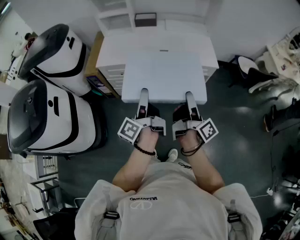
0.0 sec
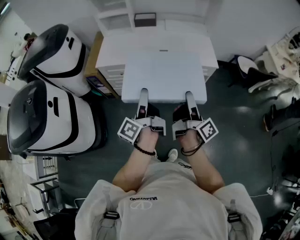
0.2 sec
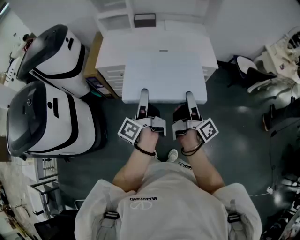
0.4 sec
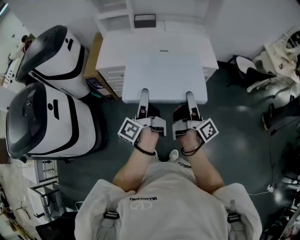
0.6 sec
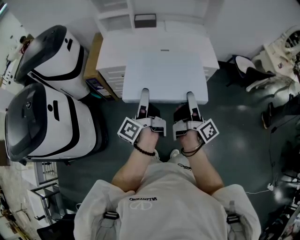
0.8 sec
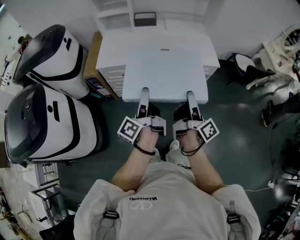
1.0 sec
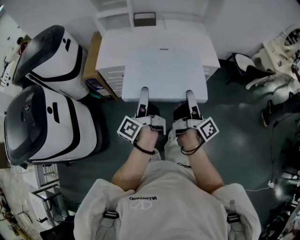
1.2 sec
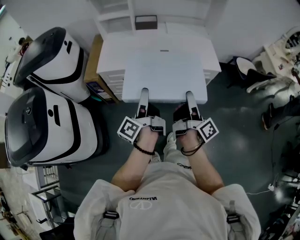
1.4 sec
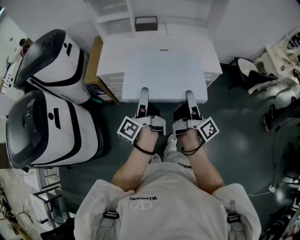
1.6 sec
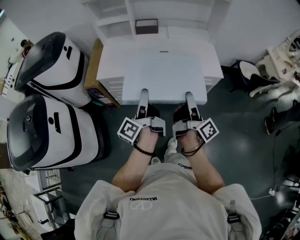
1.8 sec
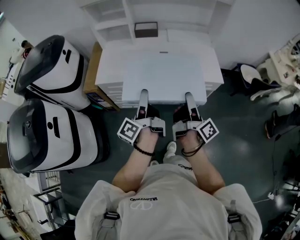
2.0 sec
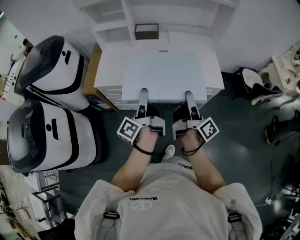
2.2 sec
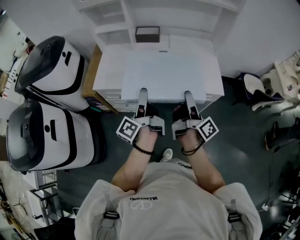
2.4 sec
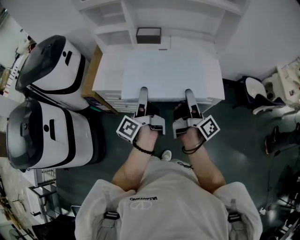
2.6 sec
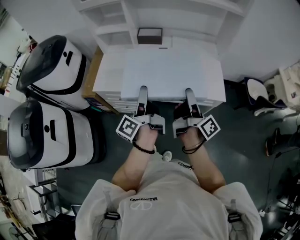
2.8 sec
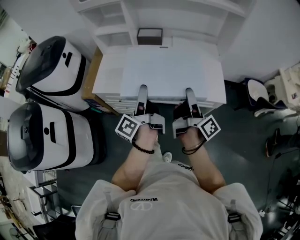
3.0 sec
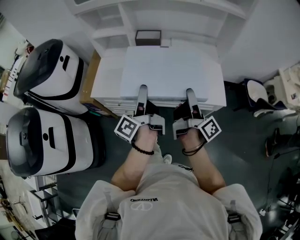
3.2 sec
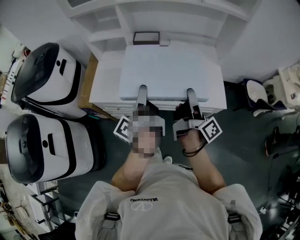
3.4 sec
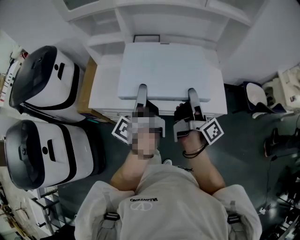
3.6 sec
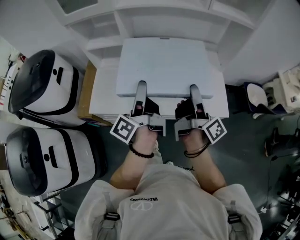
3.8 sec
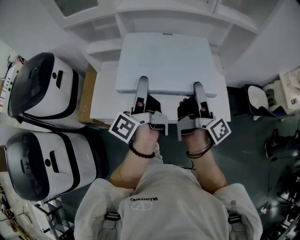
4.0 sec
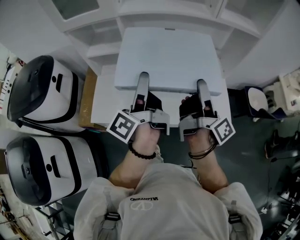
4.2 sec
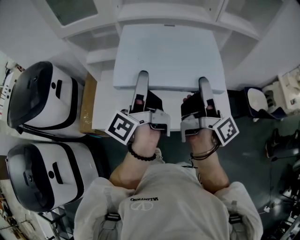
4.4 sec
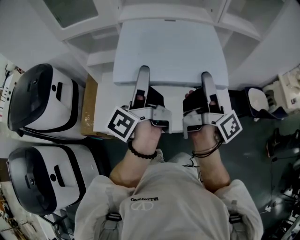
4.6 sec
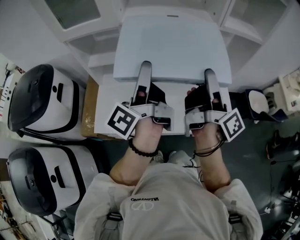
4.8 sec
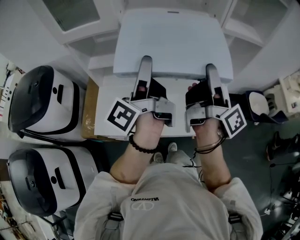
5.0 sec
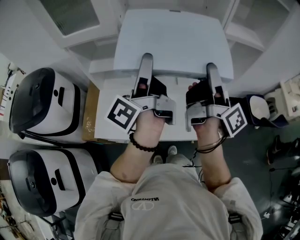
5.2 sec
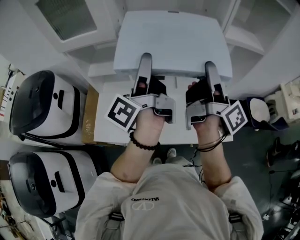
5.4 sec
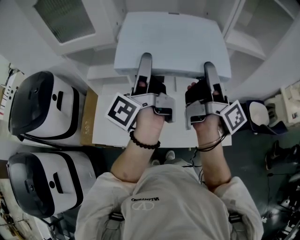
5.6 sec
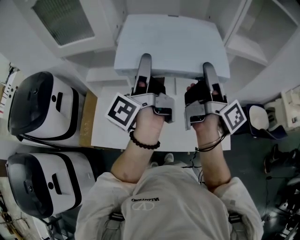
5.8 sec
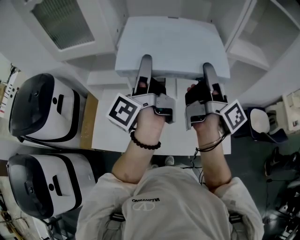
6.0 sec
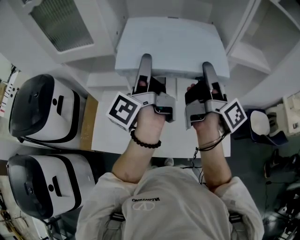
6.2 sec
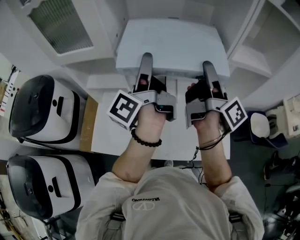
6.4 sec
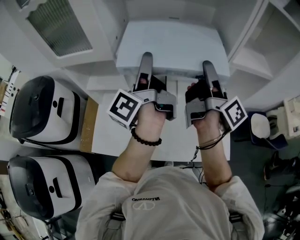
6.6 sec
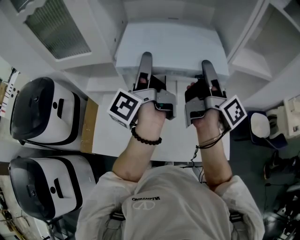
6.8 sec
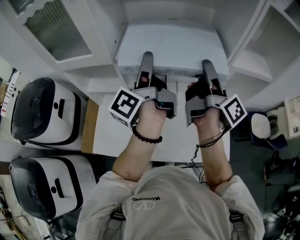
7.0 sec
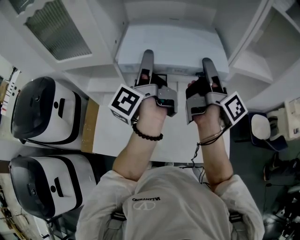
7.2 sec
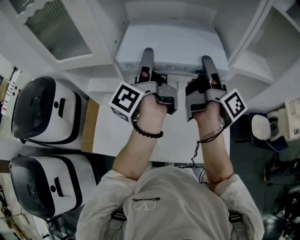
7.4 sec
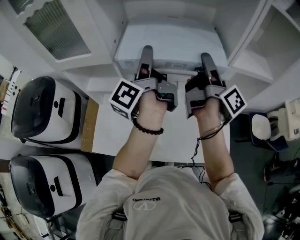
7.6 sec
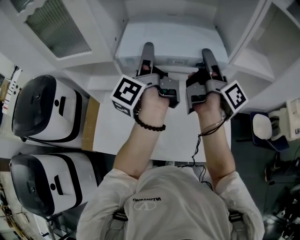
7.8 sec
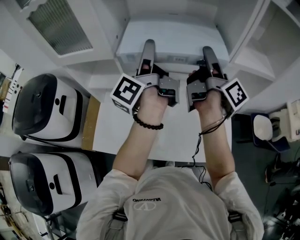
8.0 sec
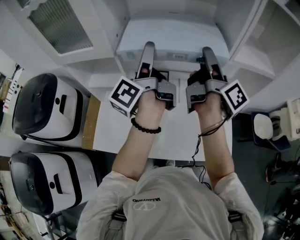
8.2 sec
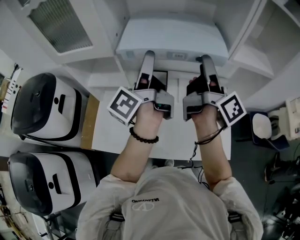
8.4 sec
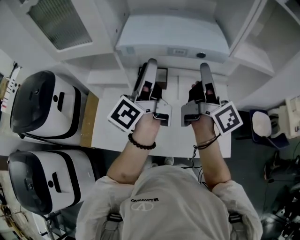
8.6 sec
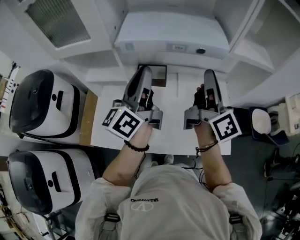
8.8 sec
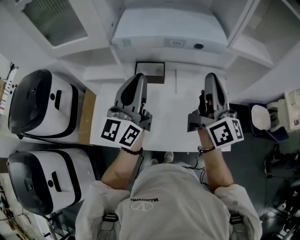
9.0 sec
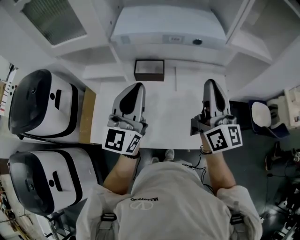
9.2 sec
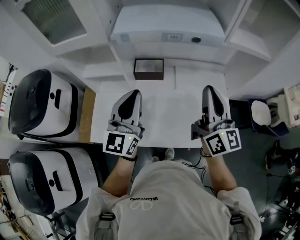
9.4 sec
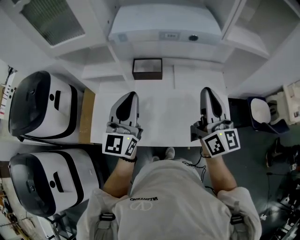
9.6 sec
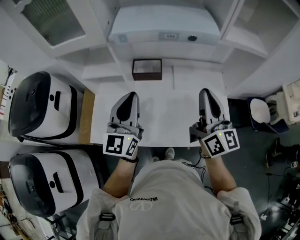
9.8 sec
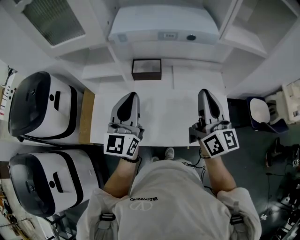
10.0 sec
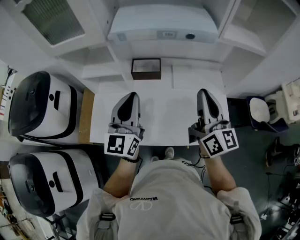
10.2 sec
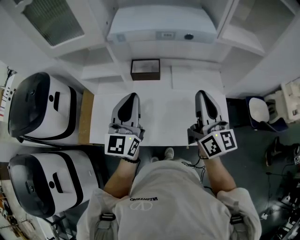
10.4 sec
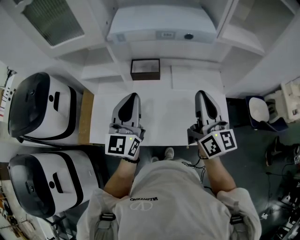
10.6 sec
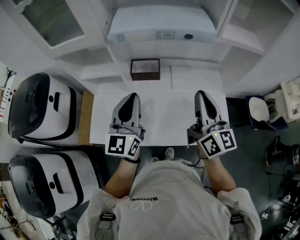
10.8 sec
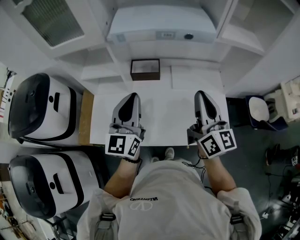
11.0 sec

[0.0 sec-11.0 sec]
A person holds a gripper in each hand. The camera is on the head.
0.0 sec to 1.6 sec: The grippers both shift forward by roughly 5 cm.
1.6 sec to 3.2 sec: Both grippers move forward, approximately 20 cm.
3.2 sec to 4.8 sec: The two grippers go about 25 cm forward and upward.
4.8 sec to 6.2 sec: Both grippers travel together forward, some 15 cm.
6.2 sec to 7.8 sec: Both grippers move forward, roughly 10 cm.
7.8 sec to 9.4 sec: The right gripper moves backward, some 15 cm, rolls counterclockwise, seen from behind, by roughly 60 degrees, and closes; the left gripper moves backward and downward, roughly 20 cm, rolls clockwise, seen from behind, by about 70 degrees, and closes up.
9.4 sec to 11.0 sec: The grippers make only small movements.

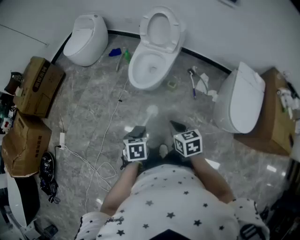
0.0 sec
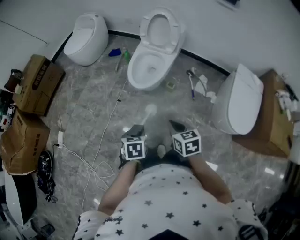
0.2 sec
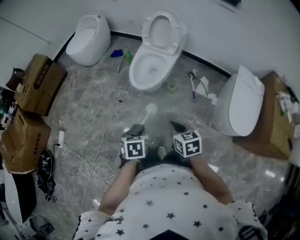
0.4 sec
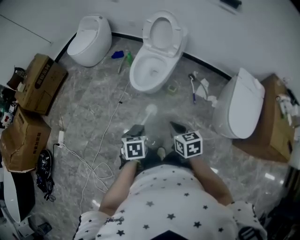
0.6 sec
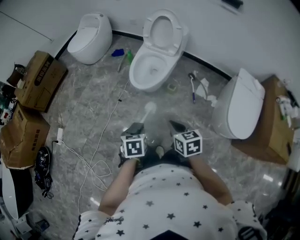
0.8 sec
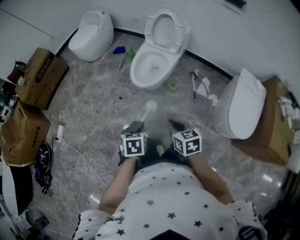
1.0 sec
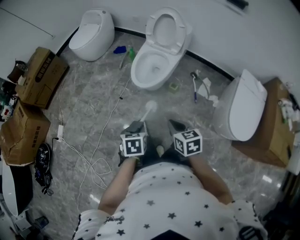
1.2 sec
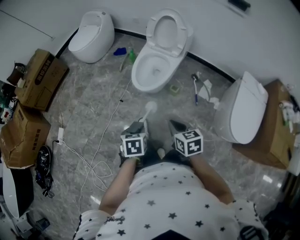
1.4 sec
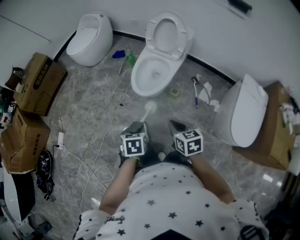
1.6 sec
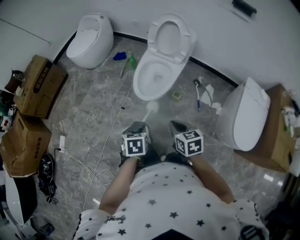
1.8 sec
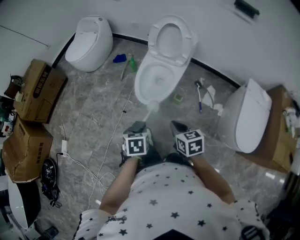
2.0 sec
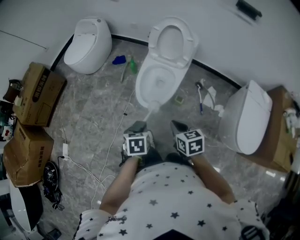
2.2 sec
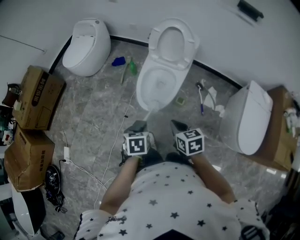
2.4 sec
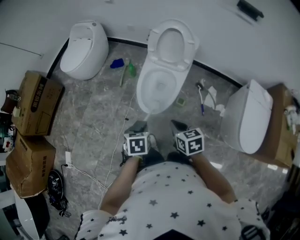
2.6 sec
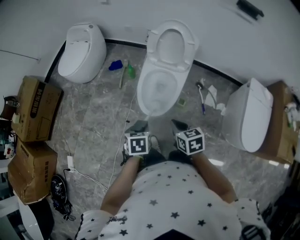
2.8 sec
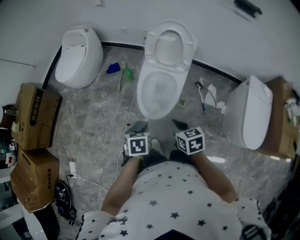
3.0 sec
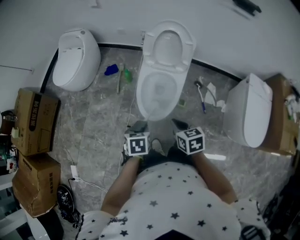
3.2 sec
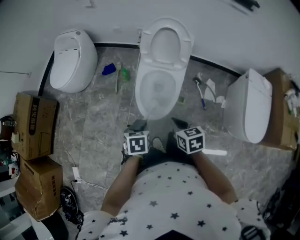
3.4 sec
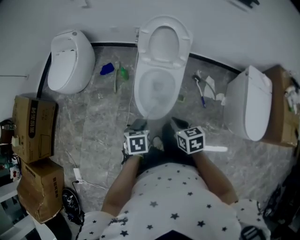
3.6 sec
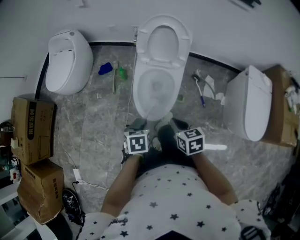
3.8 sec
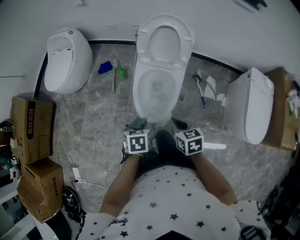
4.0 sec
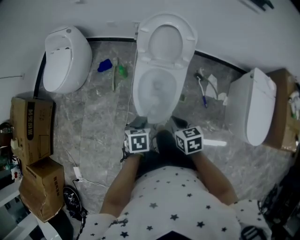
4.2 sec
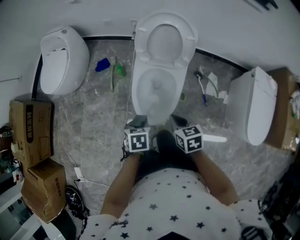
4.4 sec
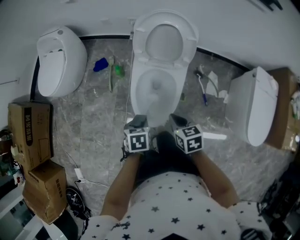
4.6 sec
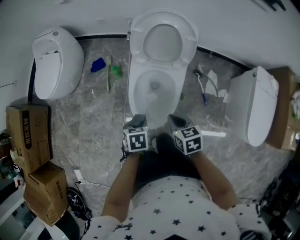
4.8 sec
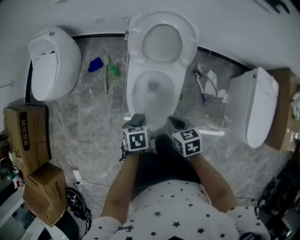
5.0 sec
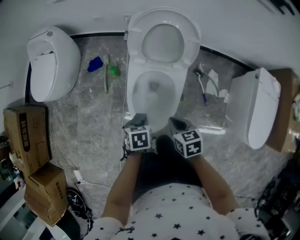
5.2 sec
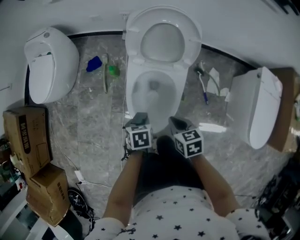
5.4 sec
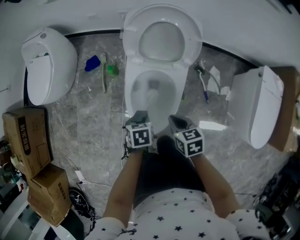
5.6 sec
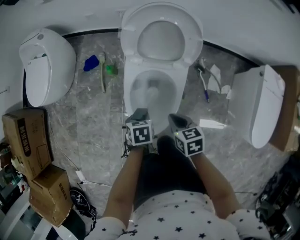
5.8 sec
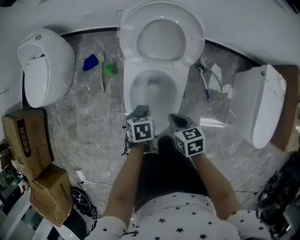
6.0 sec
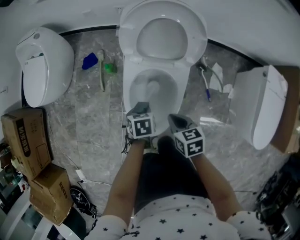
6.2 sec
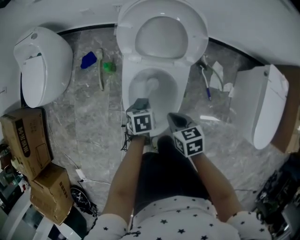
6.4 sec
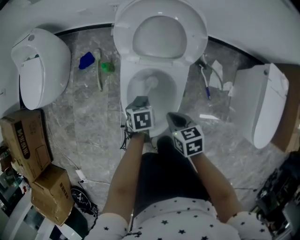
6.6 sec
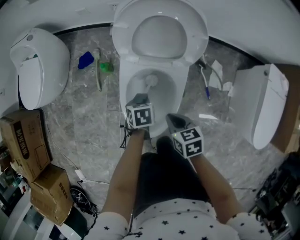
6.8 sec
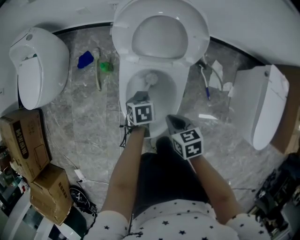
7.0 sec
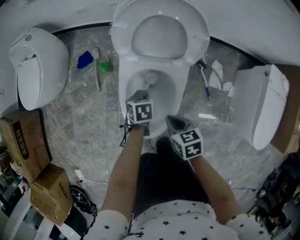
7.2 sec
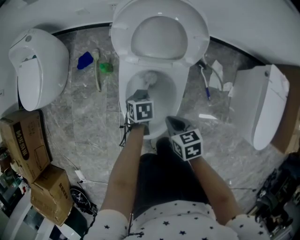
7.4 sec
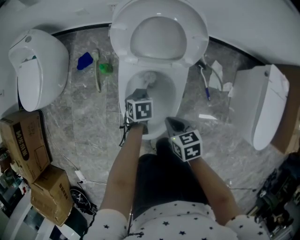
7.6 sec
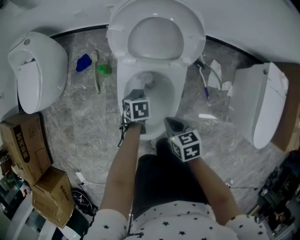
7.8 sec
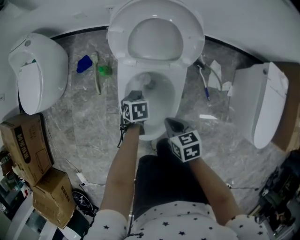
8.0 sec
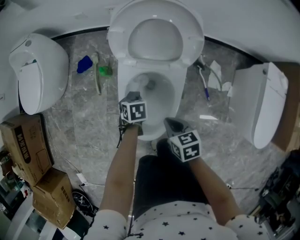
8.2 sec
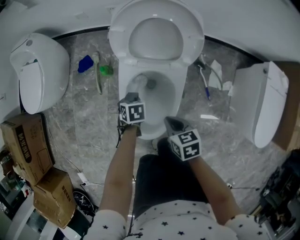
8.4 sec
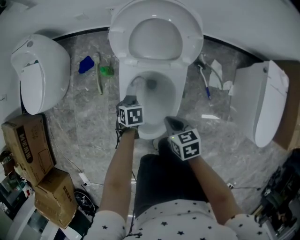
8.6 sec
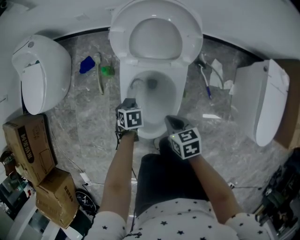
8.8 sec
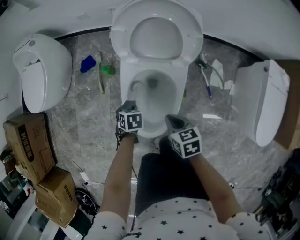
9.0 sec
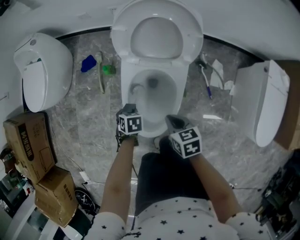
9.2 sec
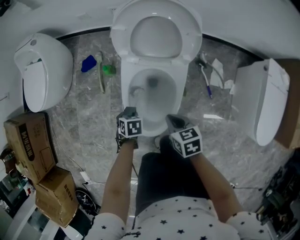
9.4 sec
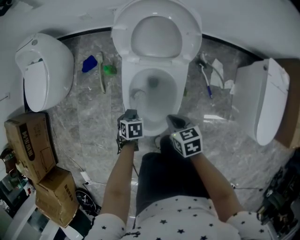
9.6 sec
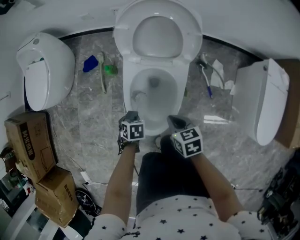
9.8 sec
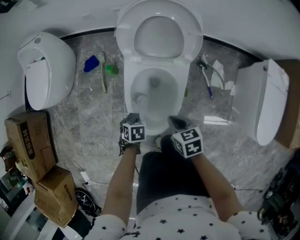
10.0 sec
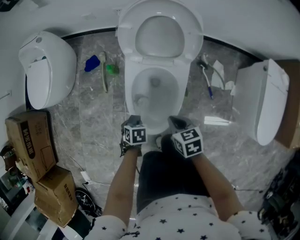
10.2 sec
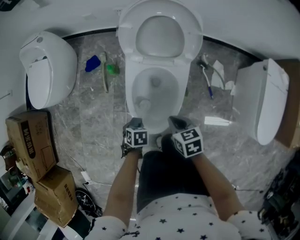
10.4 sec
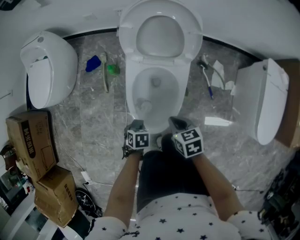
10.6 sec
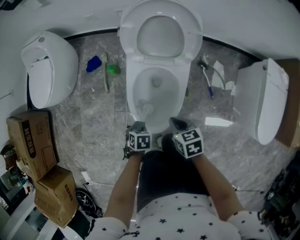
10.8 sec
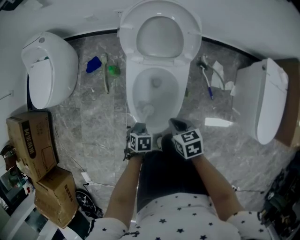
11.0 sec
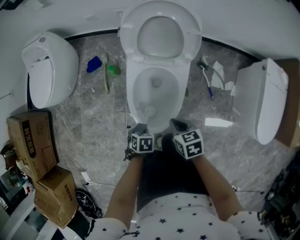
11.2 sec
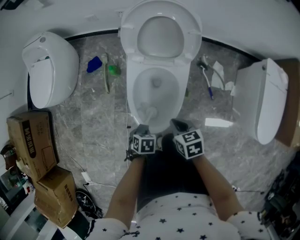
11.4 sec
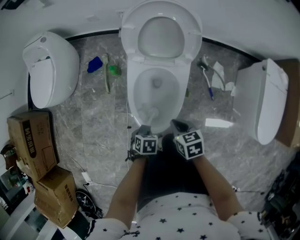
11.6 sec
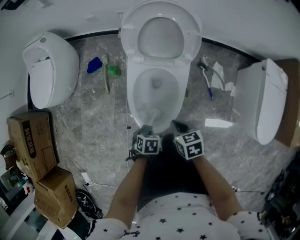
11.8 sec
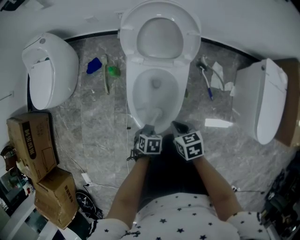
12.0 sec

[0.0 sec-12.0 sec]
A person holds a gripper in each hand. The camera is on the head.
0.0 sec to 1.6 sec: The right gripper shifts by some 5 cm.
1.6 sec to 3.0 sec: The right gripper ends up some 25 cm from where it was.
3.0 sec to 4.4 sec: The right gripper shifts by some 15 cm.
4.4 sec to 6.0 sec: The right gripper travels downward by roughly 10 cm.

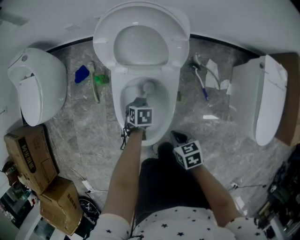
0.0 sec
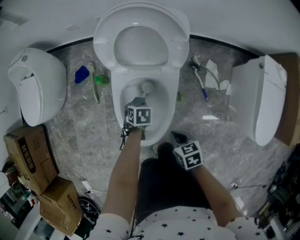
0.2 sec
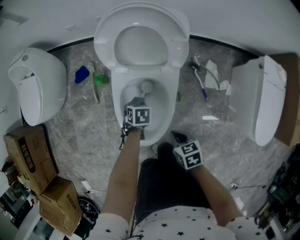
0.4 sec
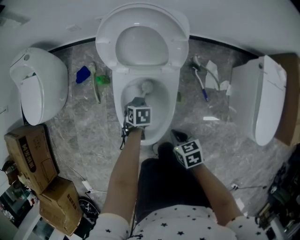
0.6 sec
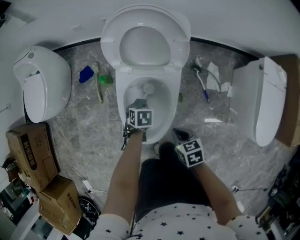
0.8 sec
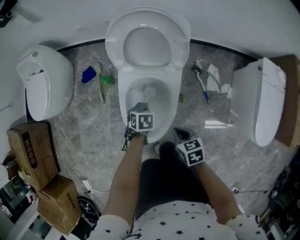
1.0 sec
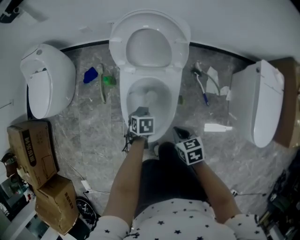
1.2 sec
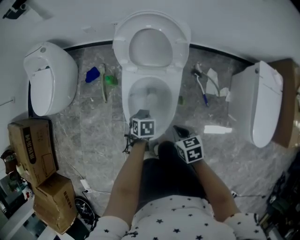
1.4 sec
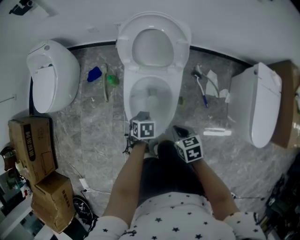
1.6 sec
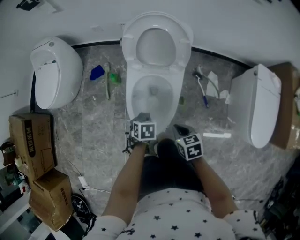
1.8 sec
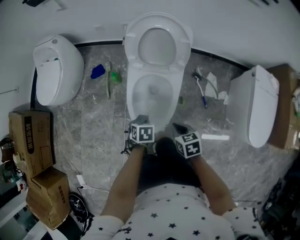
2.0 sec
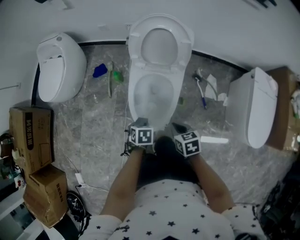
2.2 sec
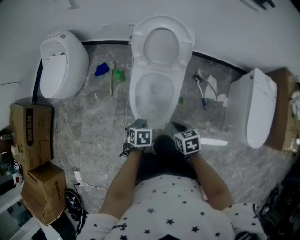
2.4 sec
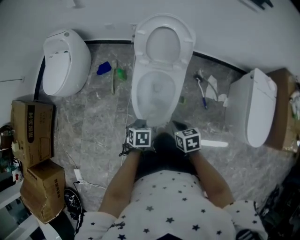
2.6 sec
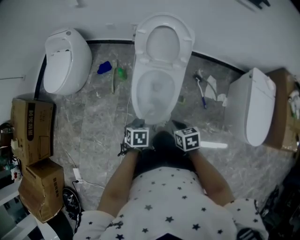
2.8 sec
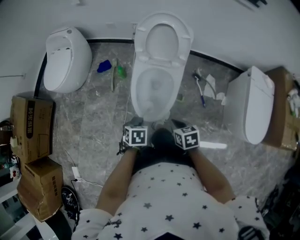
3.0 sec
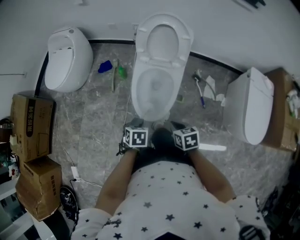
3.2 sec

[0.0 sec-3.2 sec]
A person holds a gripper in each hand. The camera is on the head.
0.0 sec to 1.6 sec: The right gripper heads upward, covering some 5 cm.
1.6 sec to 3.2 sec: The right gripper changes place by approximately 15 cm.
